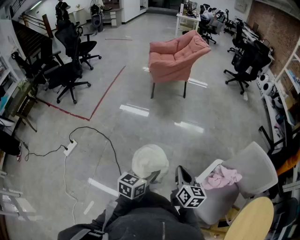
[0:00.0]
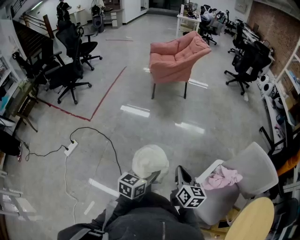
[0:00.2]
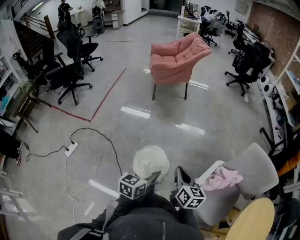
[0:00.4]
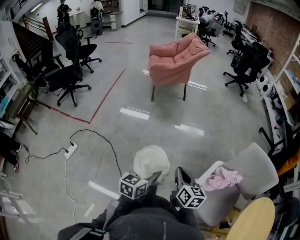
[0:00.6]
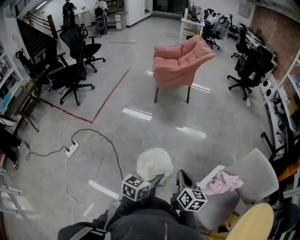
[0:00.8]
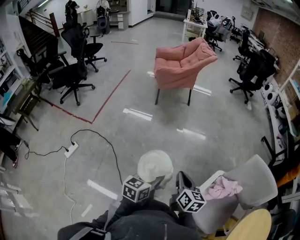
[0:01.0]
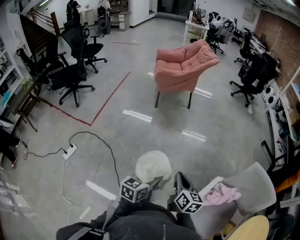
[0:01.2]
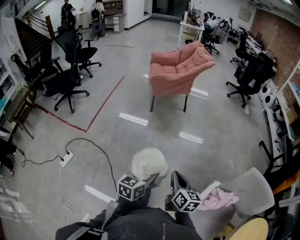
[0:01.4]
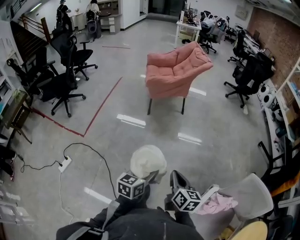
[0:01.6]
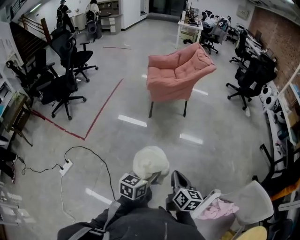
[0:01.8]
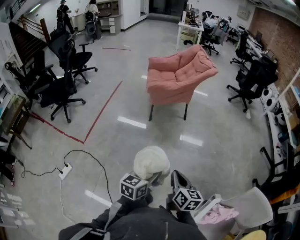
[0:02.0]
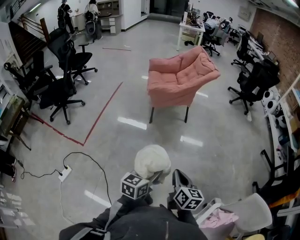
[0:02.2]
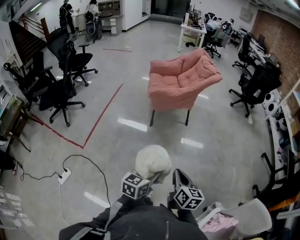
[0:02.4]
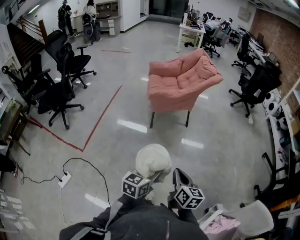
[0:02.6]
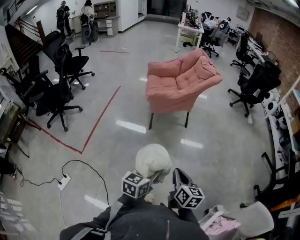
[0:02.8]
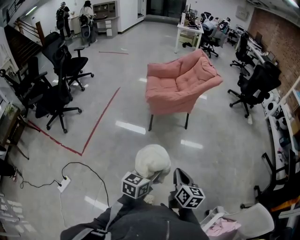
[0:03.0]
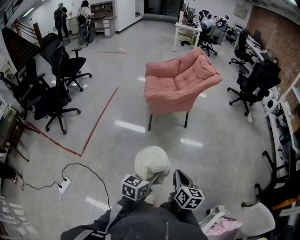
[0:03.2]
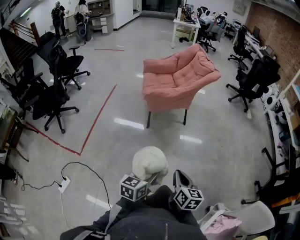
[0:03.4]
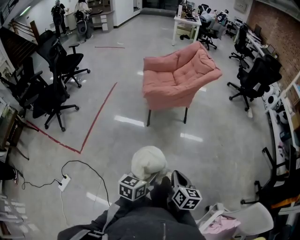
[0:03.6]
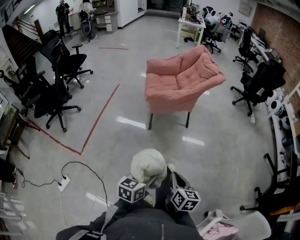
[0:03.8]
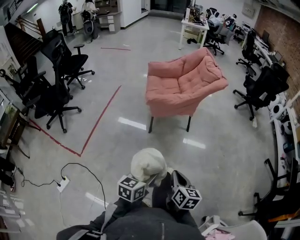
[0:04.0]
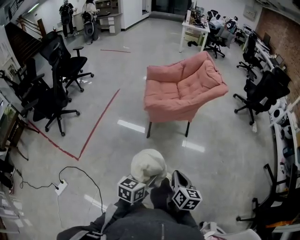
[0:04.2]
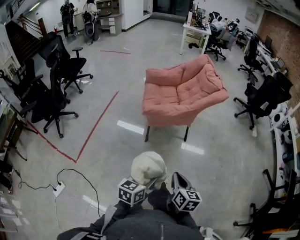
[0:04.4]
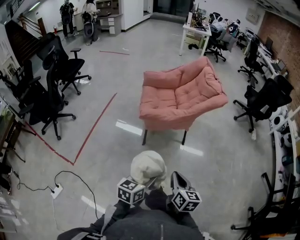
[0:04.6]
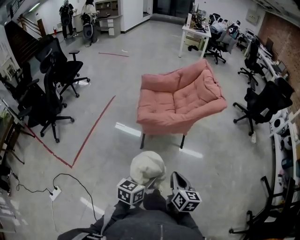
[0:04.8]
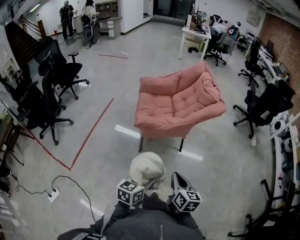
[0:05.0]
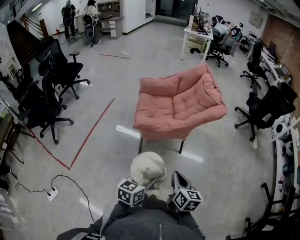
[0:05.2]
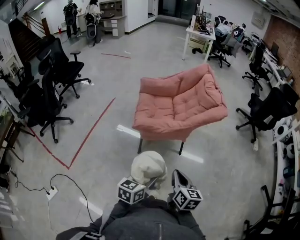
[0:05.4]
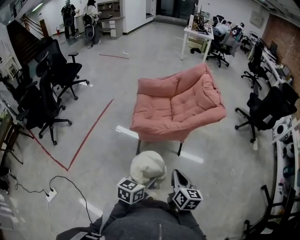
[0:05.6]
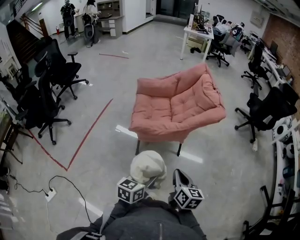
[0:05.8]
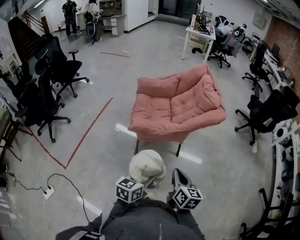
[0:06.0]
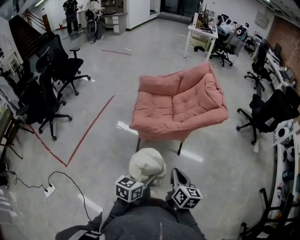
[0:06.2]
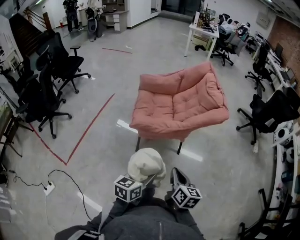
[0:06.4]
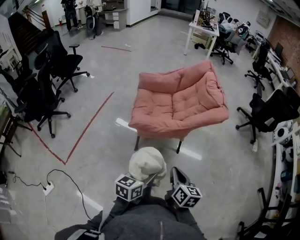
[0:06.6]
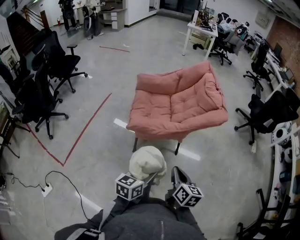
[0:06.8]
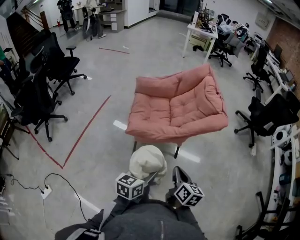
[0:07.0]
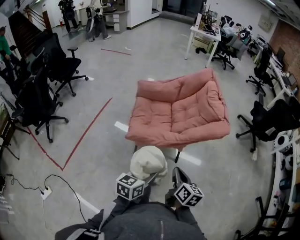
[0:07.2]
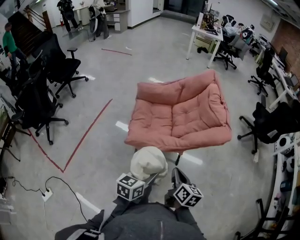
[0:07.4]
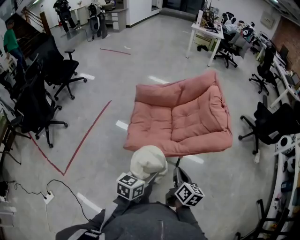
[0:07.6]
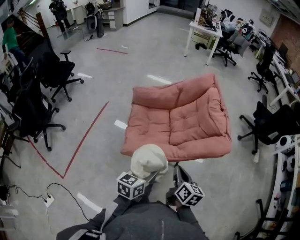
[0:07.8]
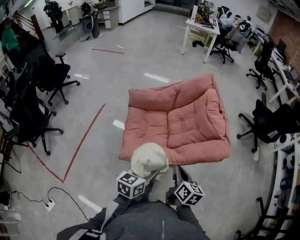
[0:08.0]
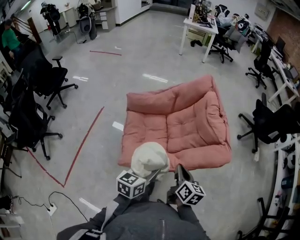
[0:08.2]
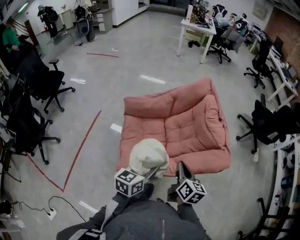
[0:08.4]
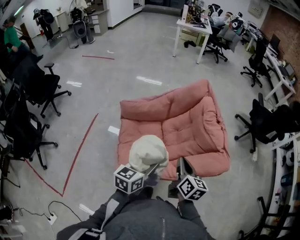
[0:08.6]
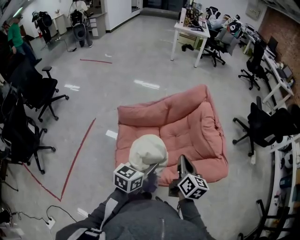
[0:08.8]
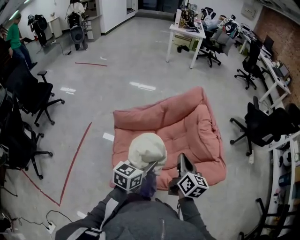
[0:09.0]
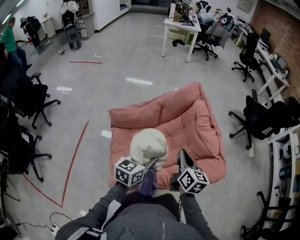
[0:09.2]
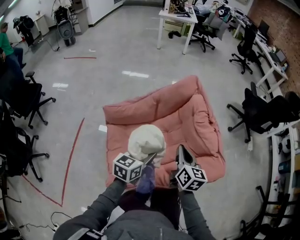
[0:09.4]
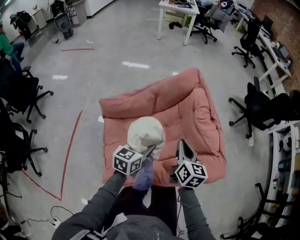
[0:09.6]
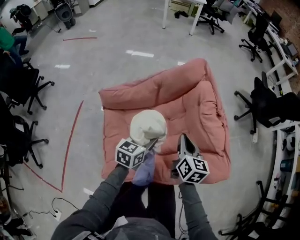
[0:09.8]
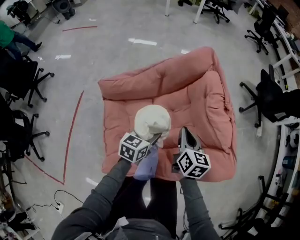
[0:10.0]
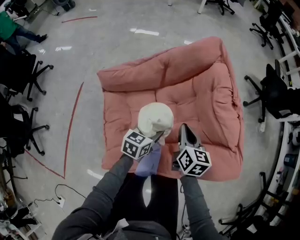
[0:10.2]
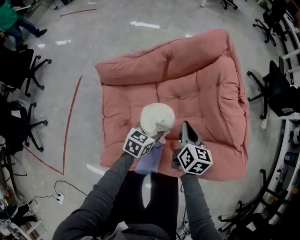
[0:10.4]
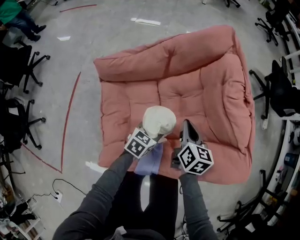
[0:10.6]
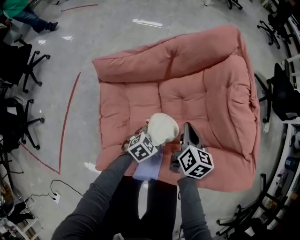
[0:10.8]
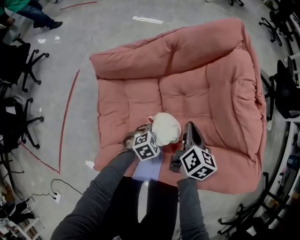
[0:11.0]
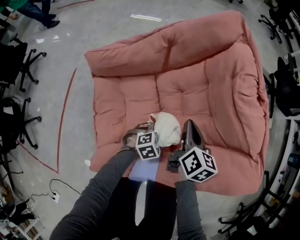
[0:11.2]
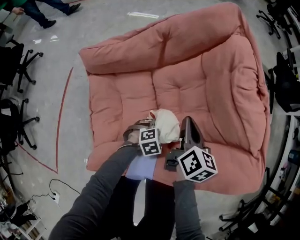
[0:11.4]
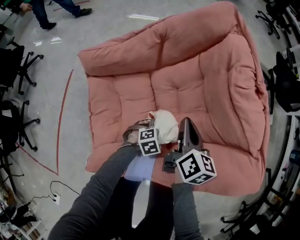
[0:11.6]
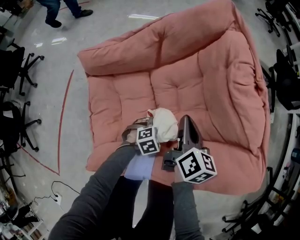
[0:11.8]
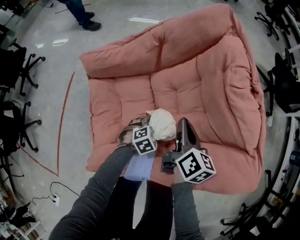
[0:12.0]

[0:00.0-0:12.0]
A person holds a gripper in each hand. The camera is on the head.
0:00.0 to 0:01.6: Both grippers move forward, about 20 cm.
0:01.6 to 0:03.0: Both grippers travel together forward, approximately 25 cm.
0:03.0 to 0:04.4: The grippers both shift forward by approximately 20 cm.
0:04.4 to 0:06.0: Both grippers move forward, some 20 cm.
0:06.0 to 0:07.6: The grippers both shift forward by approximately 20 cm.
0:07.6 to 0:09.0: Both grippers travel together forward, roughly 30 cm.
0:09.0 to 0:10.4: The right gripper is displaced downward and forward by about 20 cm, while the left gripper travels downward by roughly 25 cm, and swivels about 20 degrees.
0:10.4 to 0:12.0: The left gripper moves downward, roughly 20 cm, swivels roughly 50 degrees, and opens, while the right gripper changes place by about 5 cm.

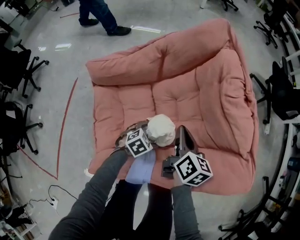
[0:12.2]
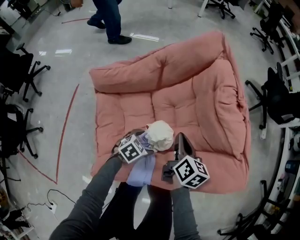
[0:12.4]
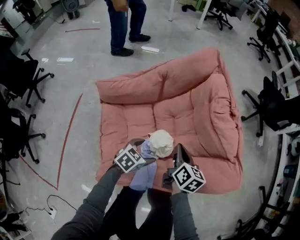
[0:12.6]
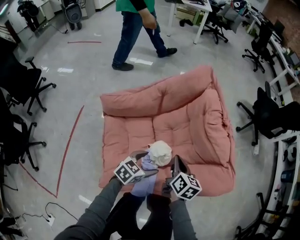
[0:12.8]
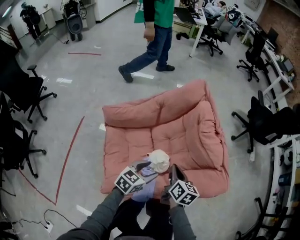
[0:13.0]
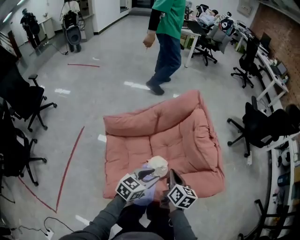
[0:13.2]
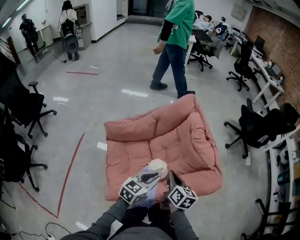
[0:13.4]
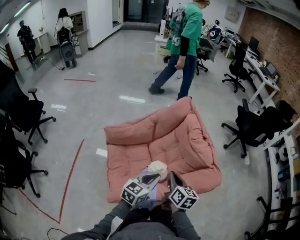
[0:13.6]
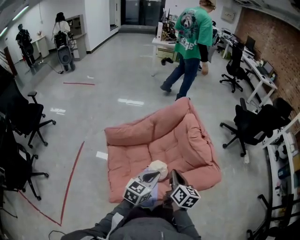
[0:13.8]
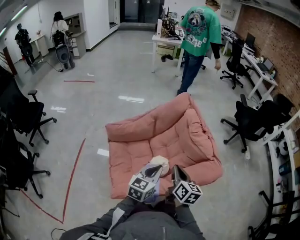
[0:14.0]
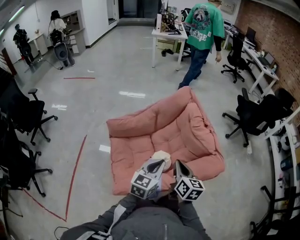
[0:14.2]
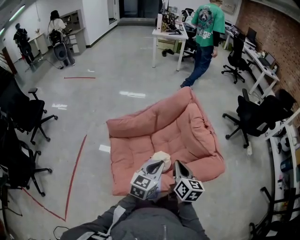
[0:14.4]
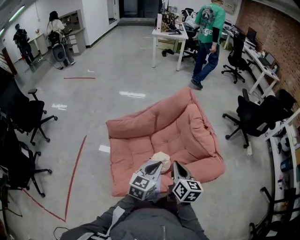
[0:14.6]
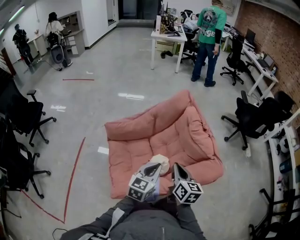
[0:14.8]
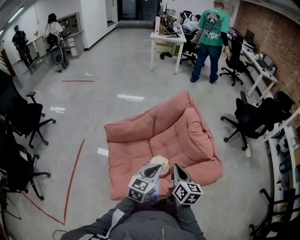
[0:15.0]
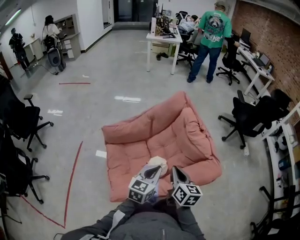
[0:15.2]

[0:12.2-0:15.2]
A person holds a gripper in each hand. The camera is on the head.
0:12.2 to 0:13.8: The right gripper goes some 20 cm upward and backward; the left gripper travels upward by some 35 cm, angles its fingers upward, by about 40 degrees, and closes.
0:13.8 to 0:15.2: There are only small adjustments of the grippers.

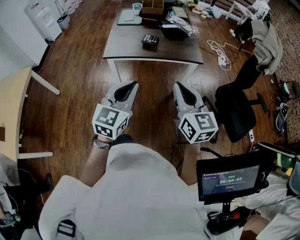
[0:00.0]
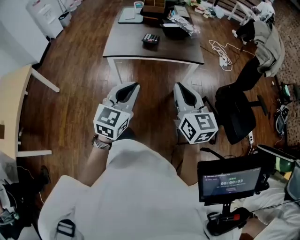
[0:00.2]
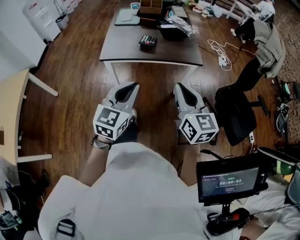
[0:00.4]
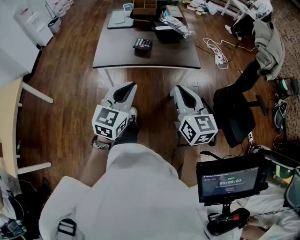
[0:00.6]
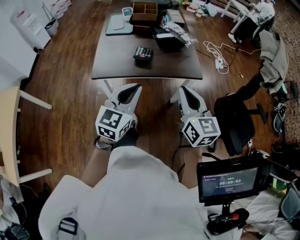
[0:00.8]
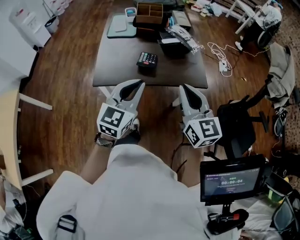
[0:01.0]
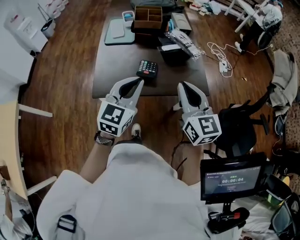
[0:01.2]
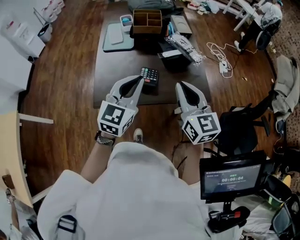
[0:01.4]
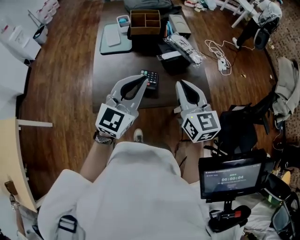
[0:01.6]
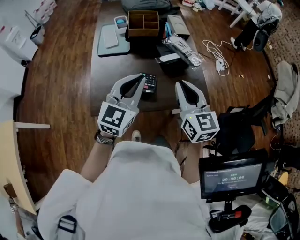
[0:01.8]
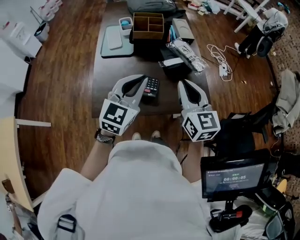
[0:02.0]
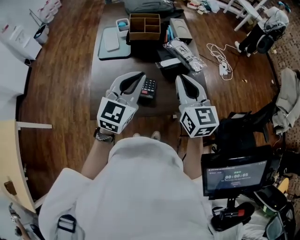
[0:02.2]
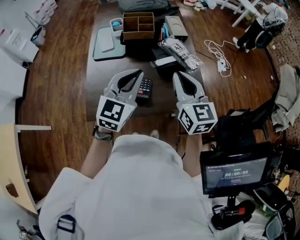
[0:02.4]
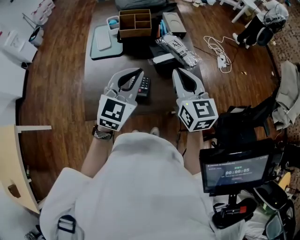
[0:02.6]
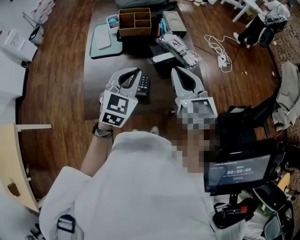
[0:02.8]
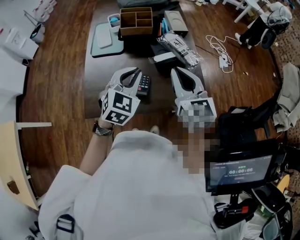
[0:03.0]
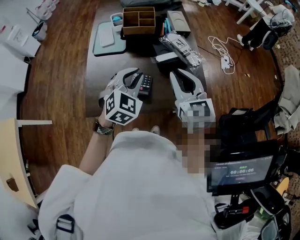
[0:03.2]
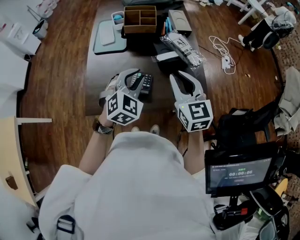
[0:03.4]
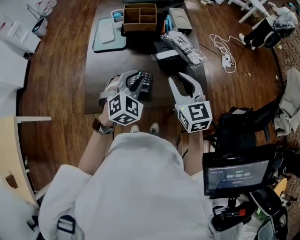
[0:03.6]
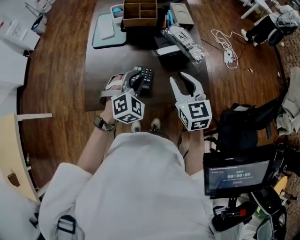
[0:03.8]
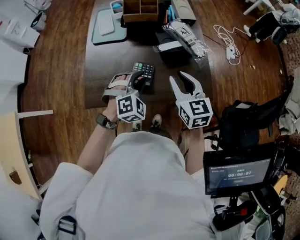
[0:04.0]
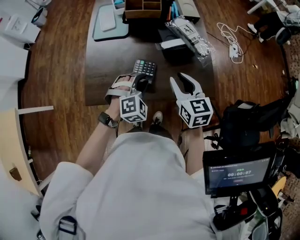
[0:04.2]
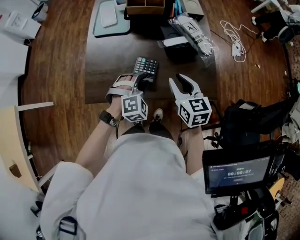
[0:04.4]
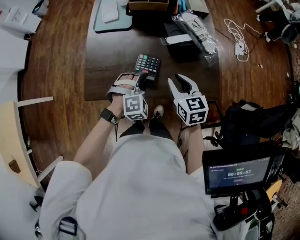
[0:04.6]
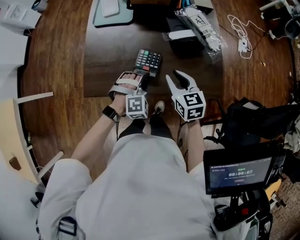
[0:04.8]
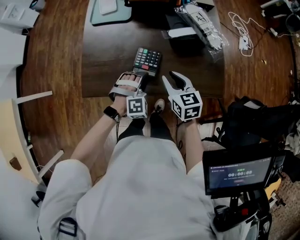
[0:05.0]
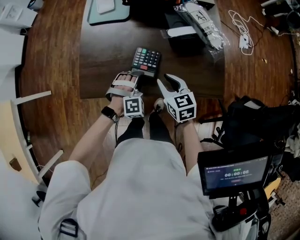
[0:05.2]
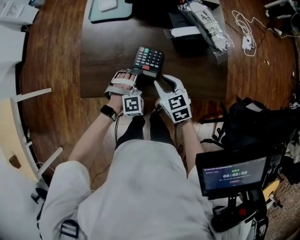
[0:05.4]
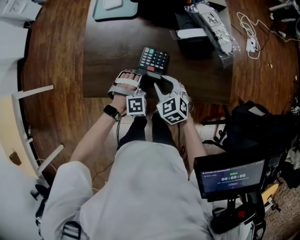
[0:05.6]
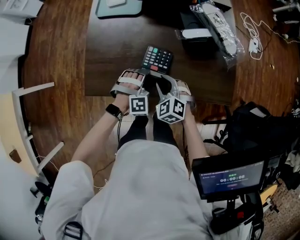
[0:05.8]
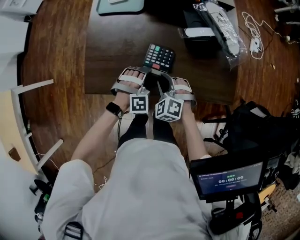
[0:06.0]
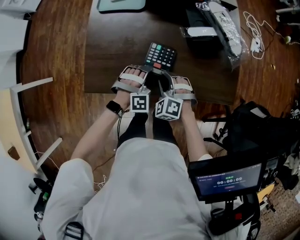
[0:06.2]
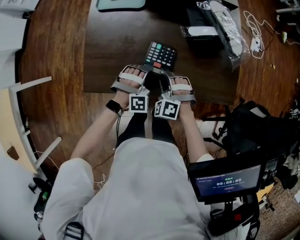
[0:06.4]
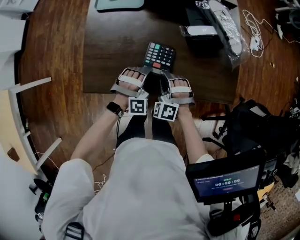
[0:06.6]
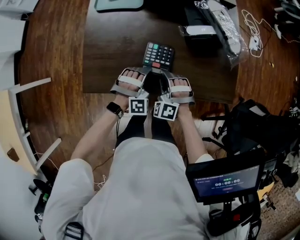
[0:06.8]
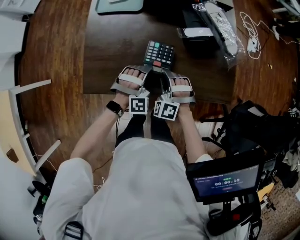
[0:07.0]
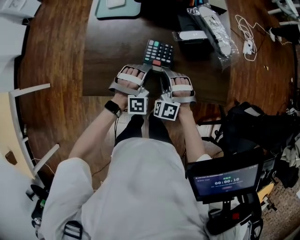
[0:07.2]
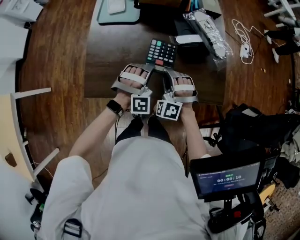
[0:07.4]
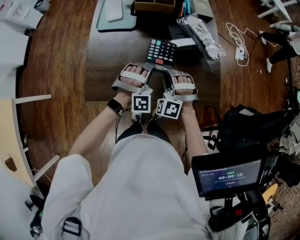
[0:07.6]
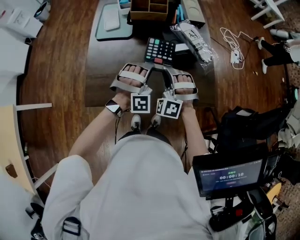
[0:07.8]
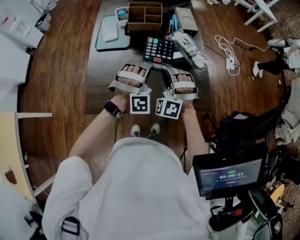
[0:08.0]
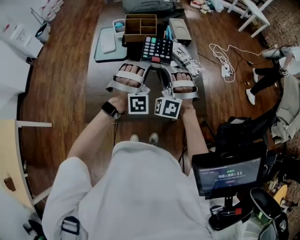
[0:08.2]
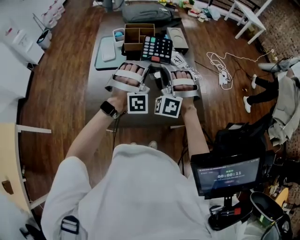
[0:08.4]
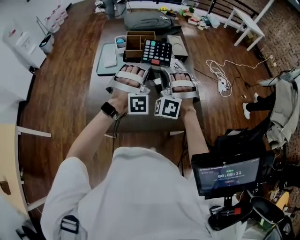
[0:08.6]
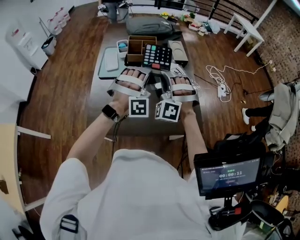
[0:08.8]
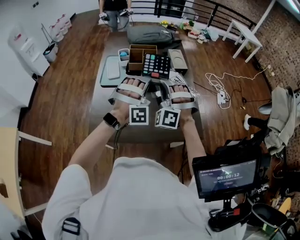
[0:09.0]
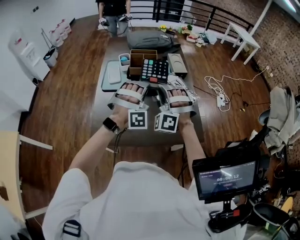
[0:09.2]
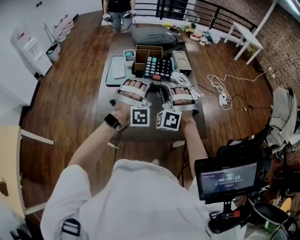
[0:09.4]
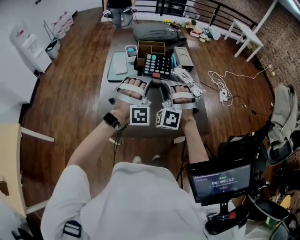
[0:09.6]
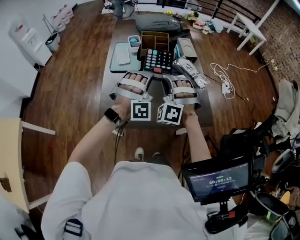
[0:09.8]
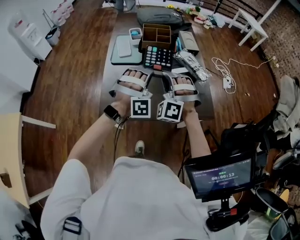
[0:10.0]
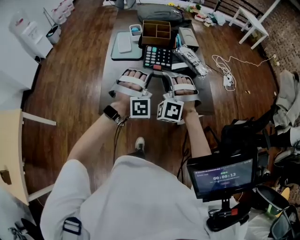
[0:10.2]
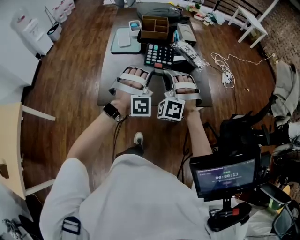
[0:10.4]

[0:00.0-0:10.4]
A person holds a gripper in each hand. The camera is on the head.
0:00.0 to 0:01.4: The grippers both shift forward by about 35 cm.
0:01.4 to 0:03.0: The left gripper goes about 15 cm forward and downward, and changes its angle by approximately 20 degrees, while the right gripper shifts approximately 10 cm forward.
0:03.0 to 0:04.4: The grippers both shift downward by about 15 cm. The left gripper turns by roughly 40 degrees, and opens up. The right gripper rotates some 20 degrees, and opens its fingers.
0:04.4 to 0:06.0: The right gripper goes some 20 cm downward and to the left, and rotates around the line of its fingers by some 60 degrees, counterclockwise from behind. Meanwhile the left gripper travels downward by approximately 10 cm.
0:06.0 to 0:07.4: The grippers both shift upward by roughly 10 cm. The right gripper swivels some 30 degrees.
0:07.4 to 0:09.0: Both grippers travel together upward, some 25 cm. The left gripper swivels approximately 20 degrees; the right gripper changes its angle by roughly 20 degrees.
0:09.0 to 0:10.4: The two grippers go some 15 cm backward.
